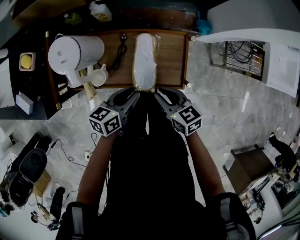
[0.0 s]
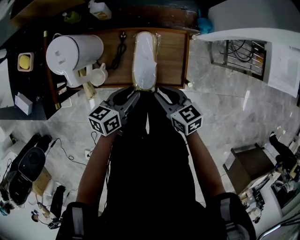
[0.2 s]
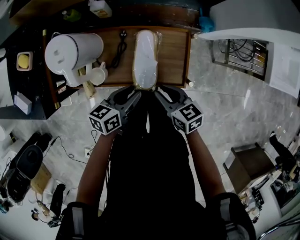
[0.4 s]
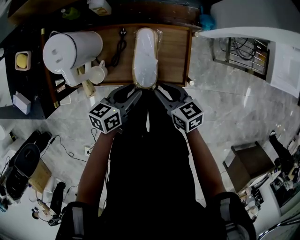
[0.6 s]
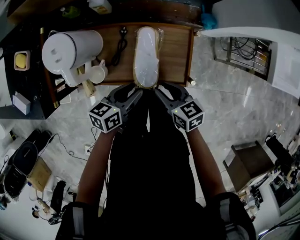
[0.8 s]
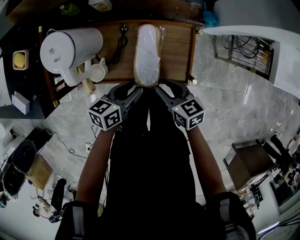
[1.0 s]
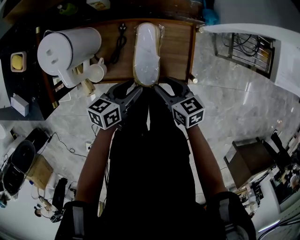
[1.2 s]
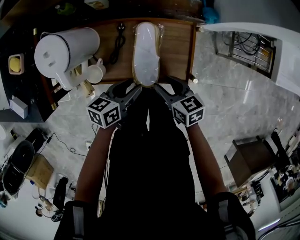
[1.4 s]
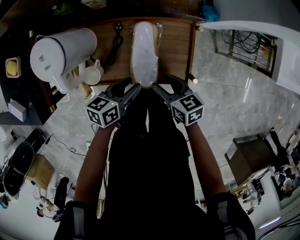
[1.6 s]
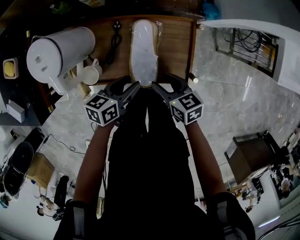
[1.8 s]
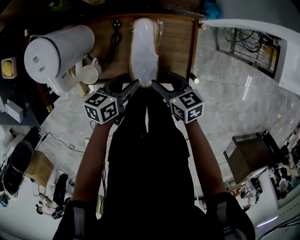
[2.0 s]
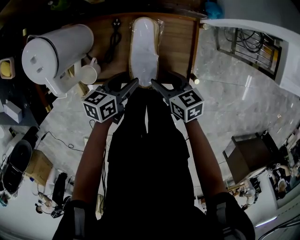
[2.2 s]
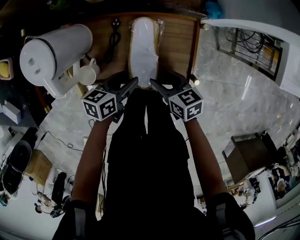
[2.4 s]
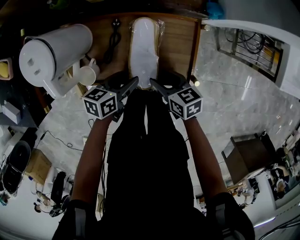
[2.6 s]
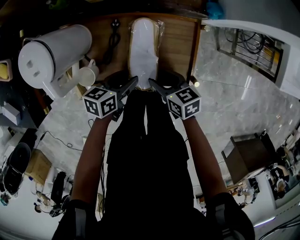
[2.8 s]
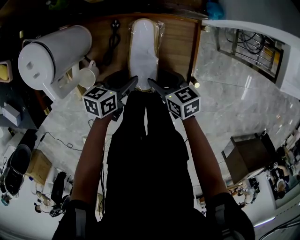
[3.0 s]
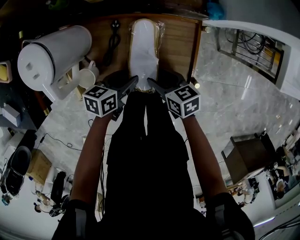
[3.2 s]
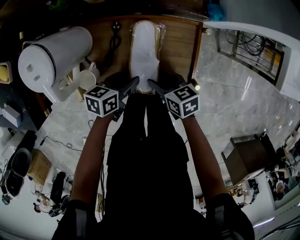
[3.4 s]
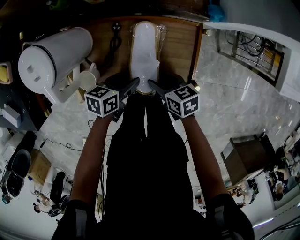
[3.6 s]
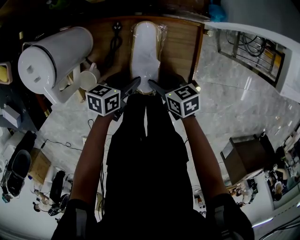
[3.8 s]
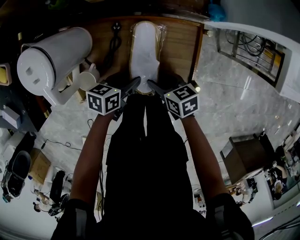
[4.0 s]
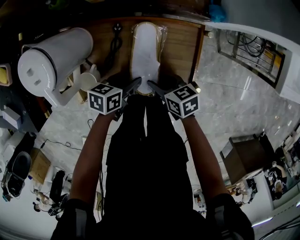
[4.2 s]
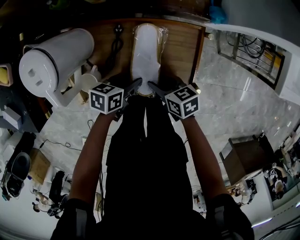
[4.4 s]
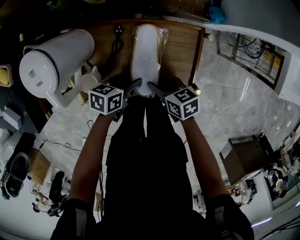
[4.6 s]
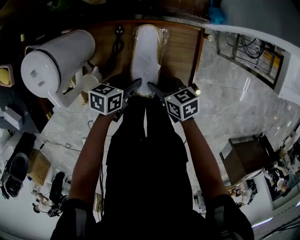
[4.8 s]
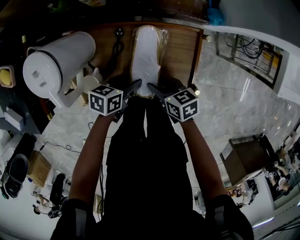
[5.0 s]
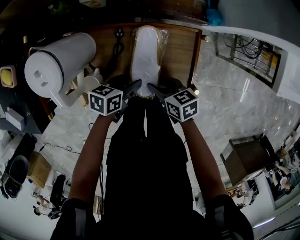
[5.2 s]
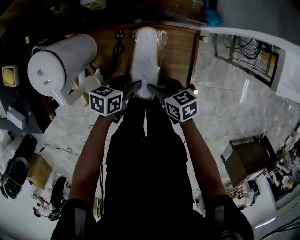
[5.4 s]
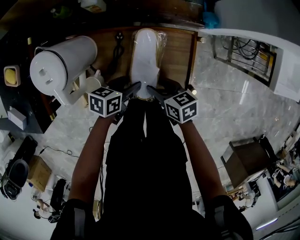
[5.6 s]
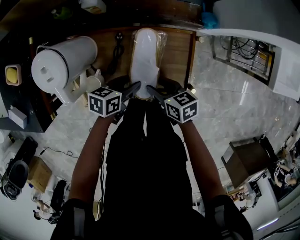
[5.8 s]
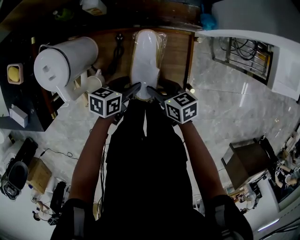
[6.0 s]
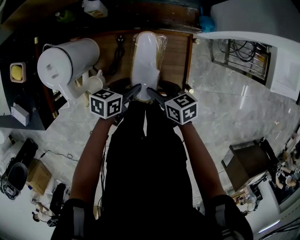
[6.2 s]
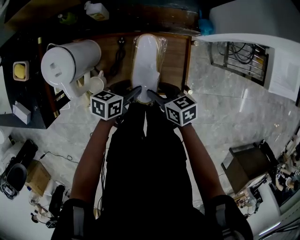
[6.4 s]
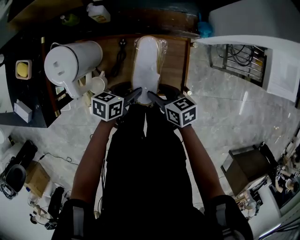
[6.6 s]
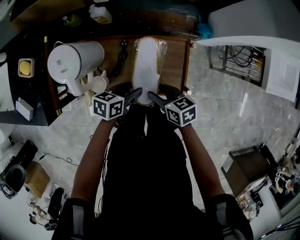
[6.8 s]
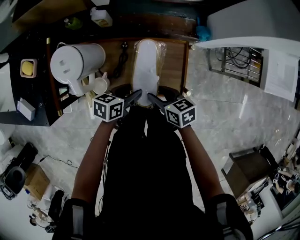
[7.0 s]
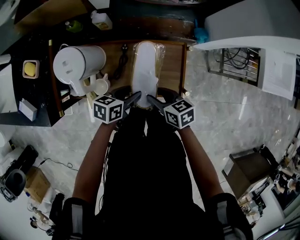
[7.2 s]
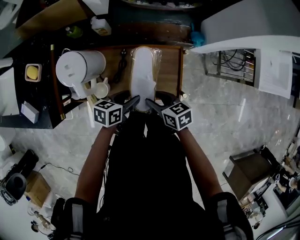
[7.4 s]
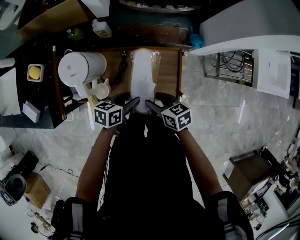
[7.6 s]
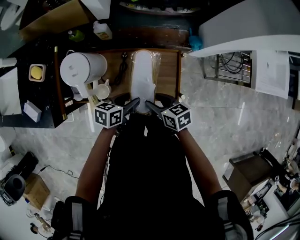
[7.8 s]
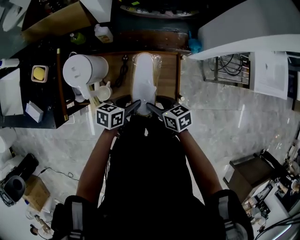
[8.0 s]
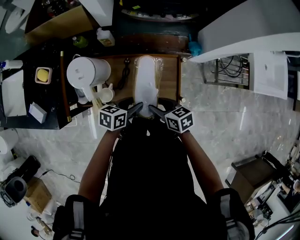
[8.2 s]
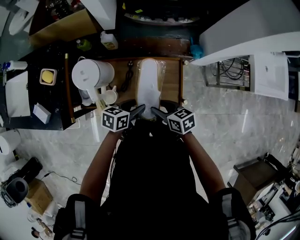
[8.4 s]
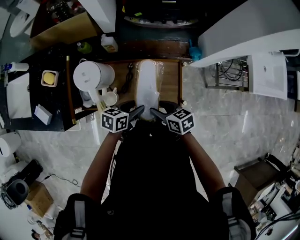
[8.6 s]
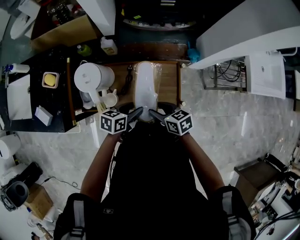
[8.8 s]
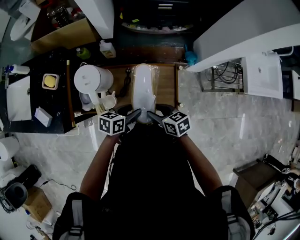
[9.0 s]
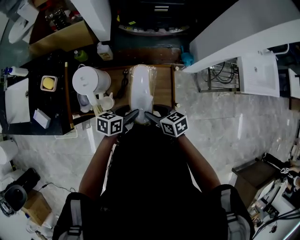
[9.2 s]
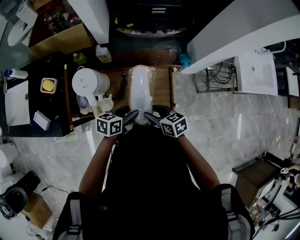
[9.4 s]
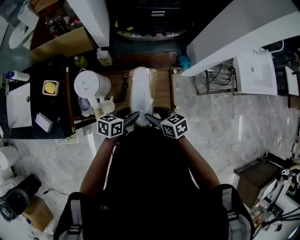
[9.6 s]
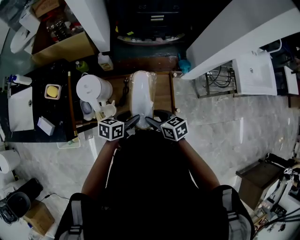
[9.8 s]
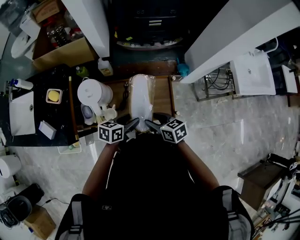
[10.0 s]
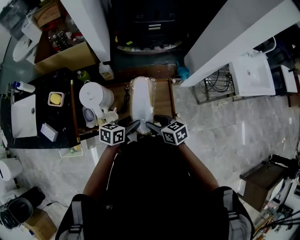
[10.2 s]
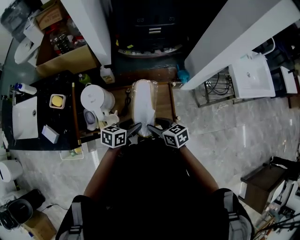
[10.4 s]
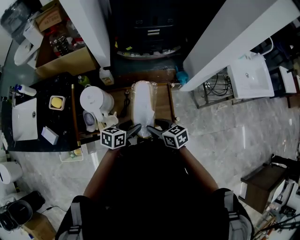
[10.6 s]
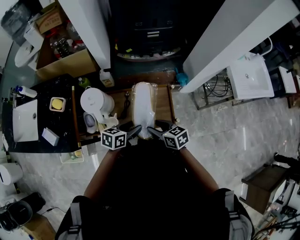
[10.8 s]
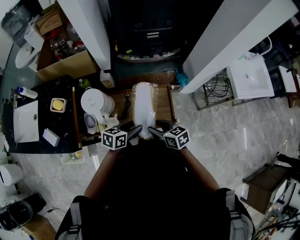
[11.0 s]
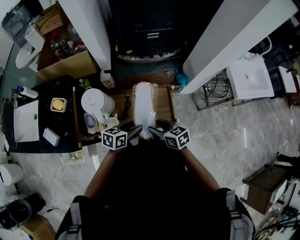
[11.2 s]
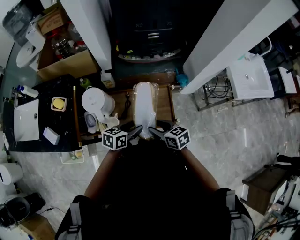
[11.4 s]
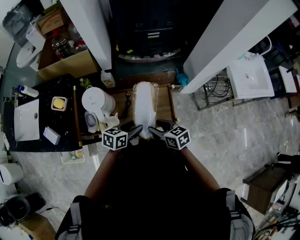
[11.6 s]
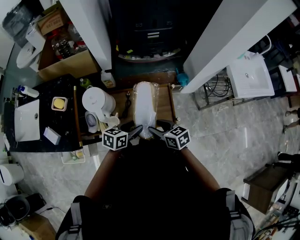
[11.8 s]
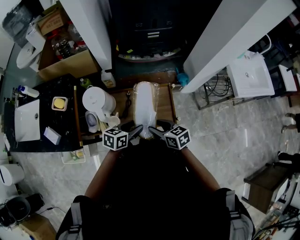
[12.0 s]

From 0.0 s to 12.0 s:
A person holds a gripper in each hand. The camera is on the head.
From 0.0 s to 1.6 s: The grippers both shift downward by roughly 5 cm. The right gripper opens its fingers.
From 1.6 s to 3.0 s: The right gripper changes place by approximately 5 cm. Meanwhile the left gripper is displaced downward by roughly 5 cm.
From 3.0 s to 4.4 s: The grippers move only a little.
From 4.4 s to 6.0 s: Both grippers travel together upward, approximately 5 cm.
From 6.0 s to 7.6 s: Both grippers move upward, roughly 5 cm.
From 7.6 s to 9.0 s: The right gripper ends up roughly 5 cm from where it was. The left gripper changes place by approximately 5 cm.
From 9.0 s to 12.0 s: The grippers move only a little.

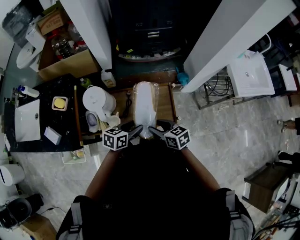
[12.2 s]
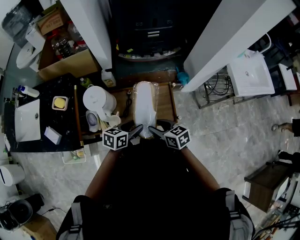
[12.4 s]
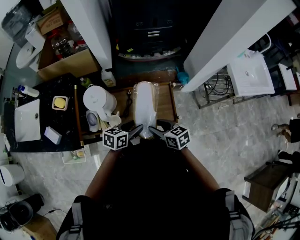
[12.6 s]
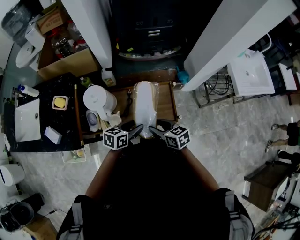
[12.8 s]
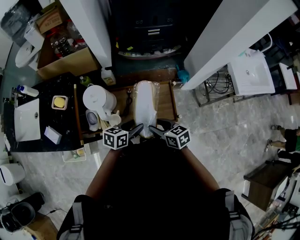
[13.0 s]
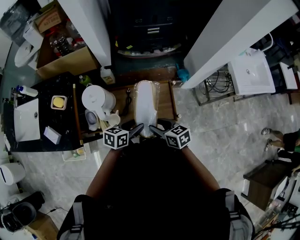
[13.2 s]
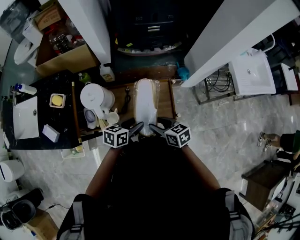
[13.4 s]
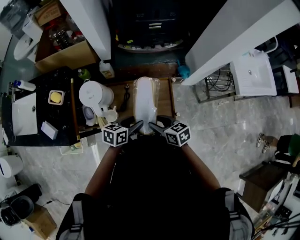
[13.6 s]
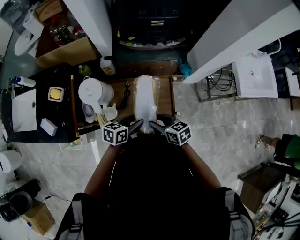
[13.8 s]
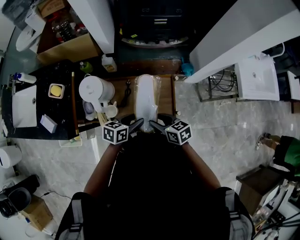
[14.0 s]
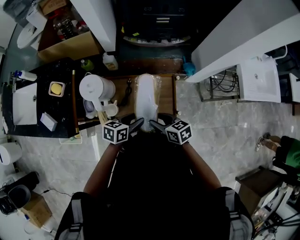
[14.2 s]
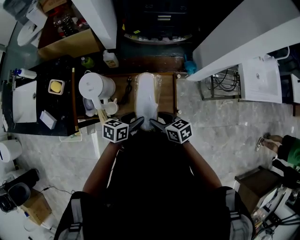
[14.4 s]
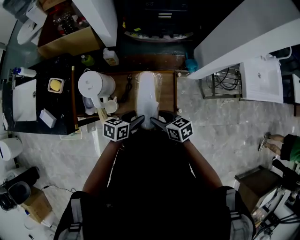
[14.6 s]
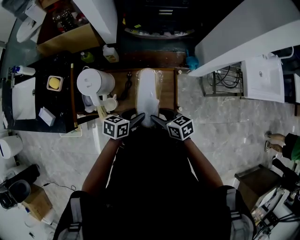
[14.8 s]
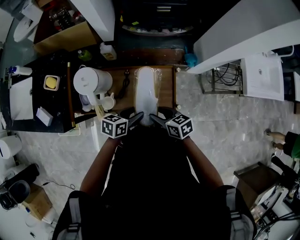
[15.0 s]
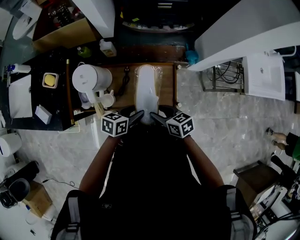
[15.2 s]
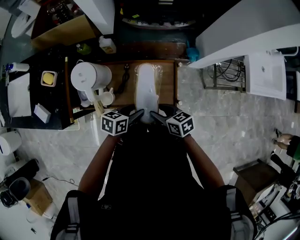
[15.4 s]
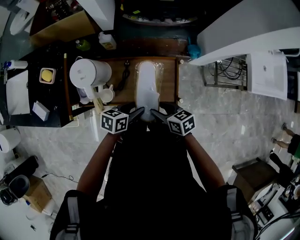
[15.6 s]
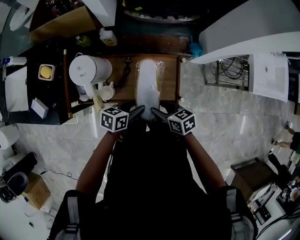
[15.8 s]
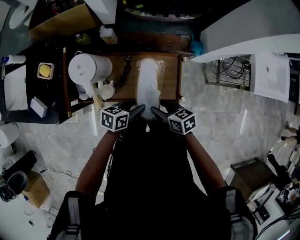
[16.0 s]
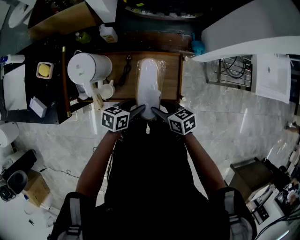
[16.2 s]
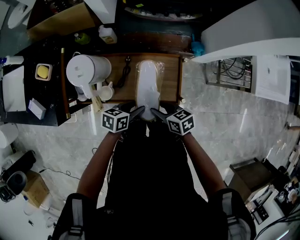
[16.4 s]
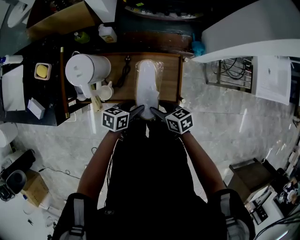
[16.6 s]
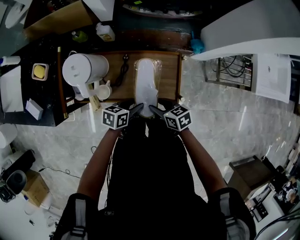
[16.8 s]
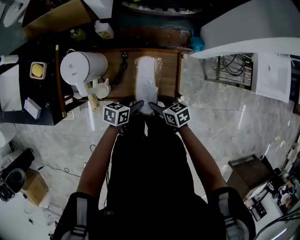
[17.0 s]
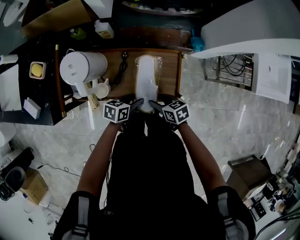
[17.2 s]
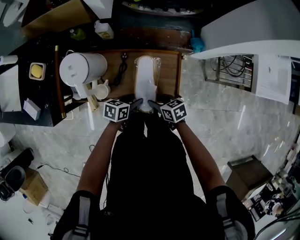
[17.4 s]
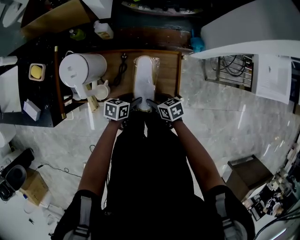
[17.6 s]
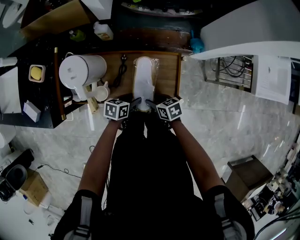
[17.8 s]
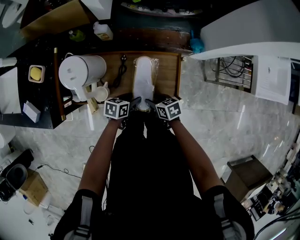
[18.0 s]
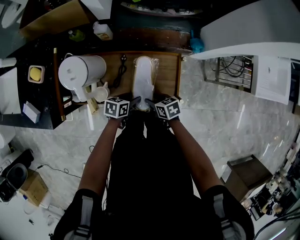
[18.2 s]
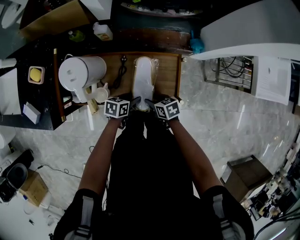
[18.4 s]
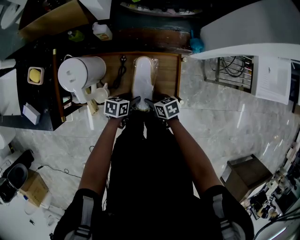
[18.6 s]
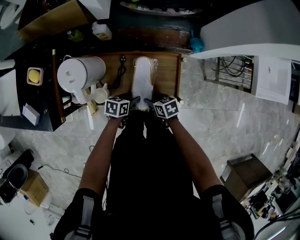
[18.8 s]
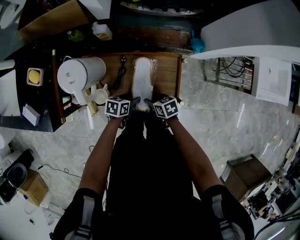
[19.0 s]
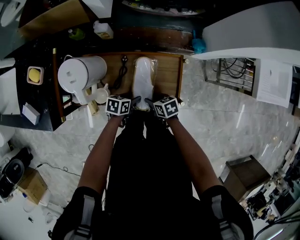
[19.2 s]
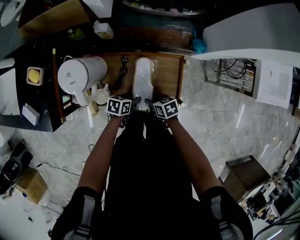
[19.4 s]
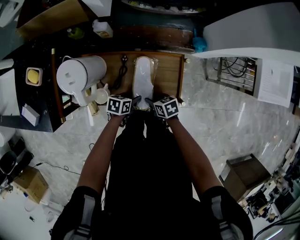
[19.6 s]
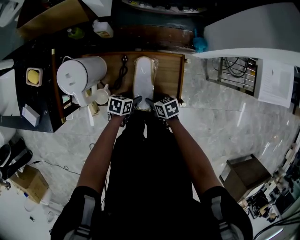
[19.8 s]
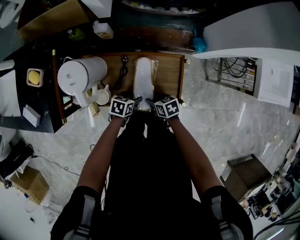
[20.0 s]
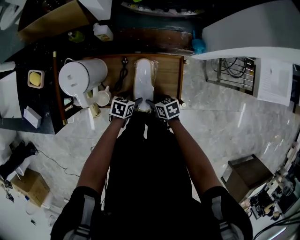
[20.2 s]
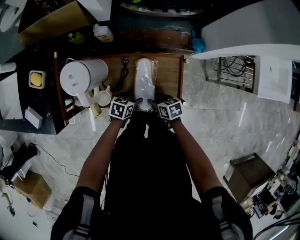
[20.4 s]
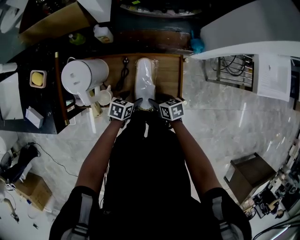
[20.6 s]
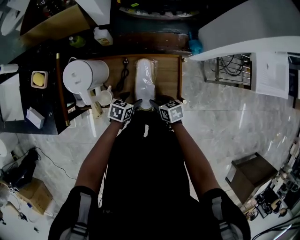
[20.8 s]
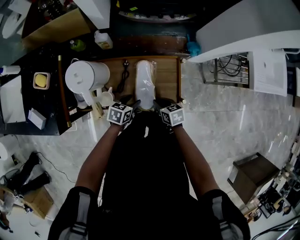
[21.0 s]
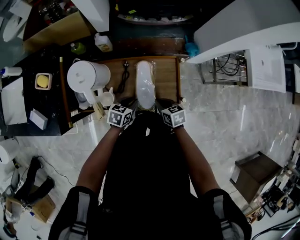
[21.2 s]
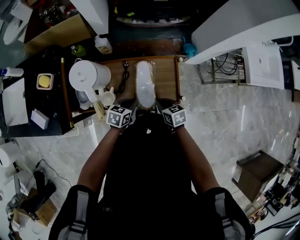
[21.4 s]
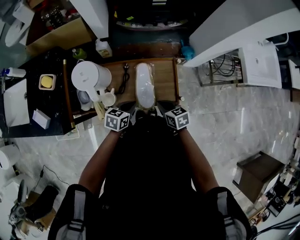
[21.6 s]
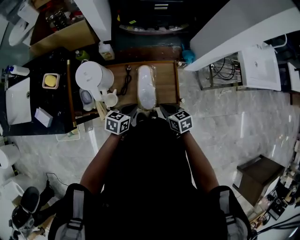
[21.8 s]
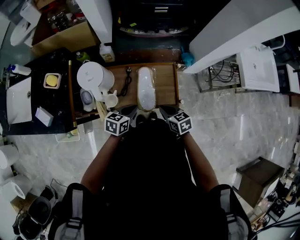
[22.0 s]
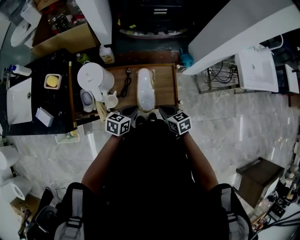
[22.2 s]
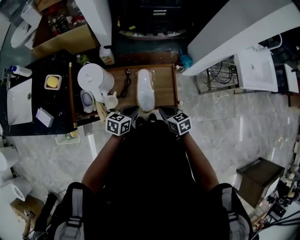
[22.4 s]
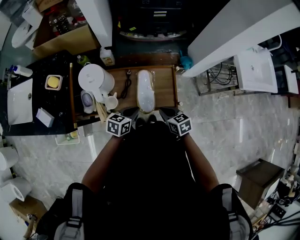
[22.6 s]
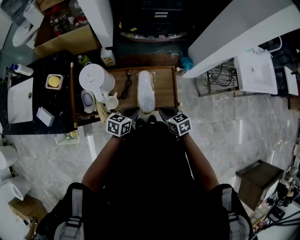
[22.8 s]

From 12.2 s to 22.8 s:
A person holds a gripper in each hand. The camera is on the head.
From 12.2 s to 15.2 s: The grippers move only a little.
From 15.2 s to 16.8 s: Both grippers move downward, some 10 cm.
From 16.8 s to 18.2 s: Both grippers travel together downward, roughly 10 cm.
From 18.2 s to 19.8 s: The grippers make only small movements.
From 19.8 s to 21.2 s: The grippers both shift upward by about 5 cm. The left gripper swivels some 20 degrees, and closes. Meanwhile the right gripper closes.
From 21.2 s to 22.8 s: Both grippers travel together upward, about 10 cm.

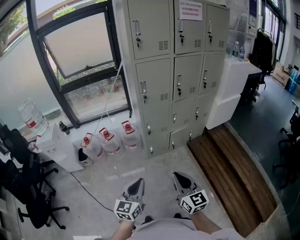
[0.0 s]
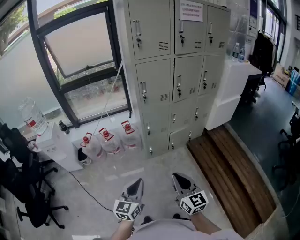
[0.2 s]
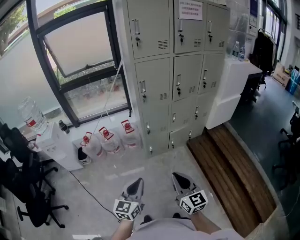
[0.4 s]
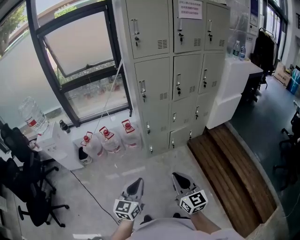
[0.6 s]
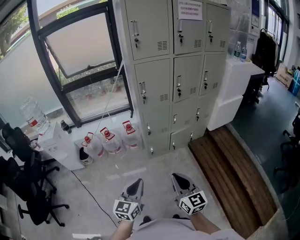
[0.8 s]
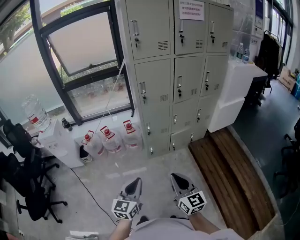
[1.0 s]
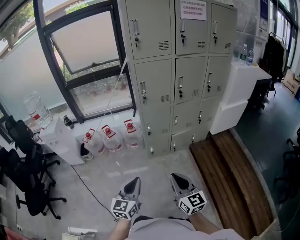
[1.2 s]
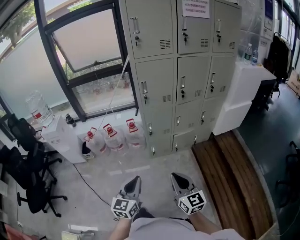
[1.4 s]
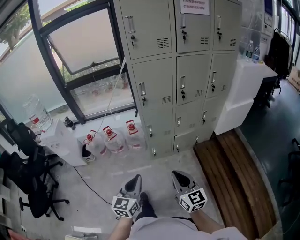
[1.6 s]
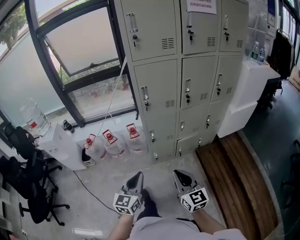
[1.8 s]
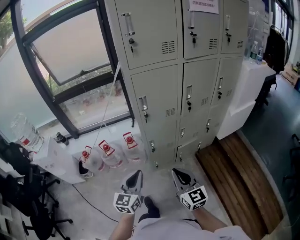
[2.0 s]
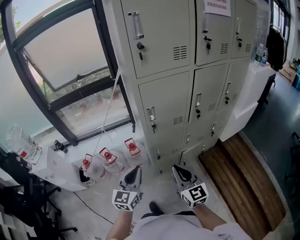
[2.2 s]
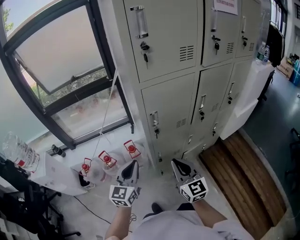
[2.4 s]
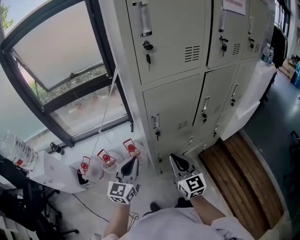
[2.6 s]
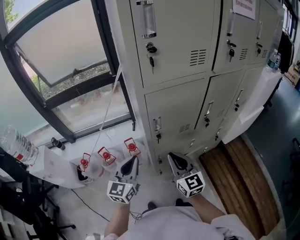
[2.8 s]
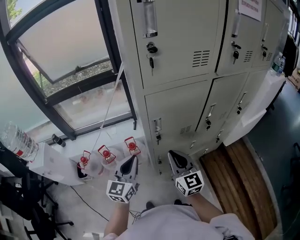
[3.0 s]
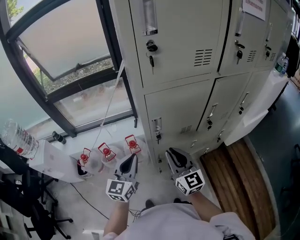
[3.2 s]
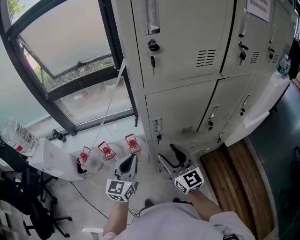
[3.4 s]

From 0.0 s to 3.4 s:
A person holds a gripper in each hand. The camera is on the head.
From 0.0 s to 1.6 s: The grippers both shift forward and to the right by some 10 cm.
From 1.6 s to 3.4 s: The two grippers travel together, forward, some 50 cm. The right gripper opens.
